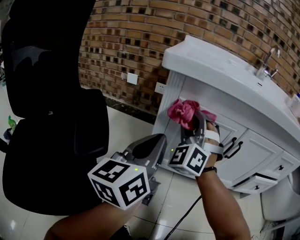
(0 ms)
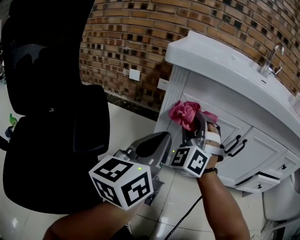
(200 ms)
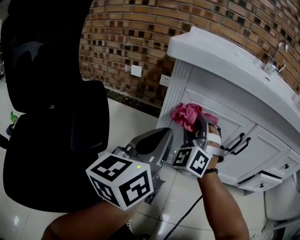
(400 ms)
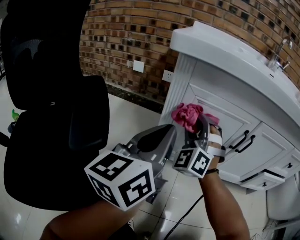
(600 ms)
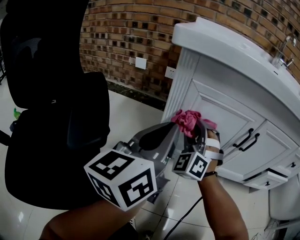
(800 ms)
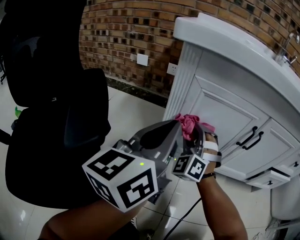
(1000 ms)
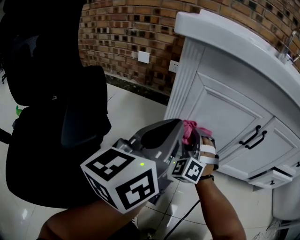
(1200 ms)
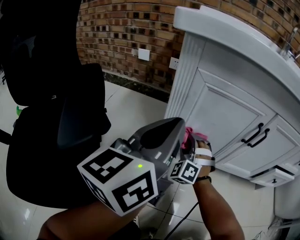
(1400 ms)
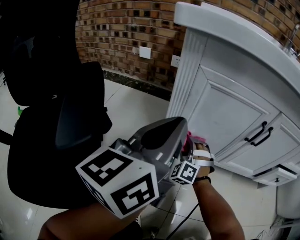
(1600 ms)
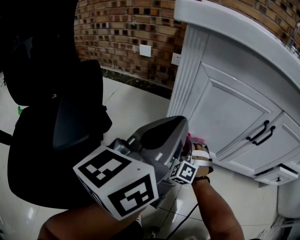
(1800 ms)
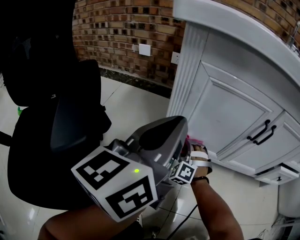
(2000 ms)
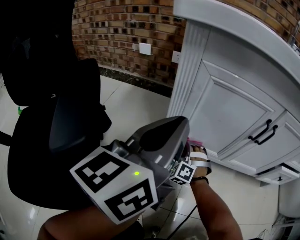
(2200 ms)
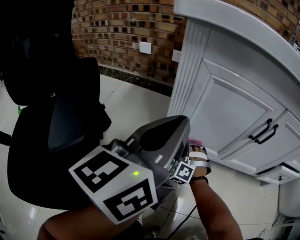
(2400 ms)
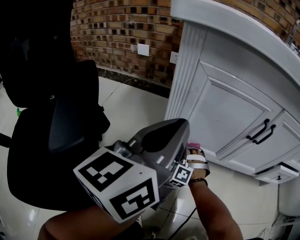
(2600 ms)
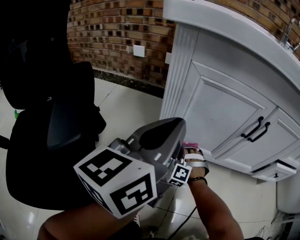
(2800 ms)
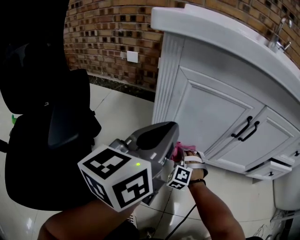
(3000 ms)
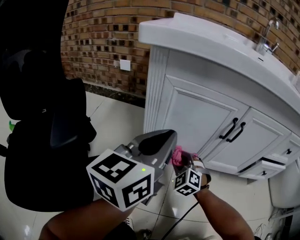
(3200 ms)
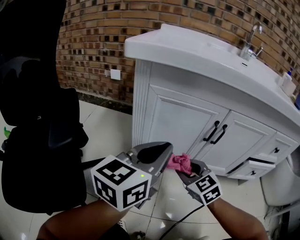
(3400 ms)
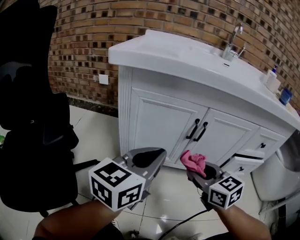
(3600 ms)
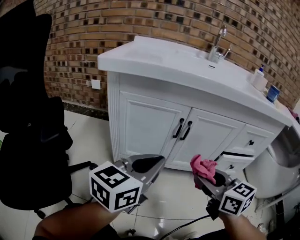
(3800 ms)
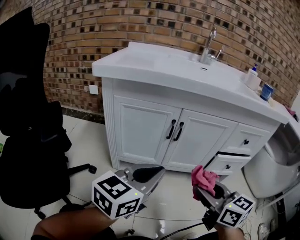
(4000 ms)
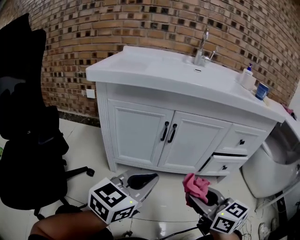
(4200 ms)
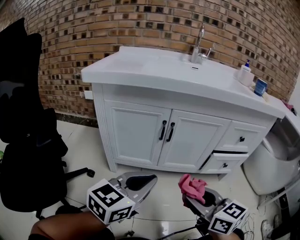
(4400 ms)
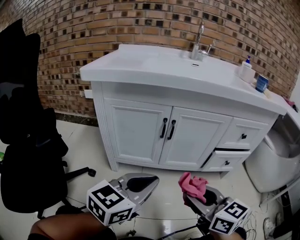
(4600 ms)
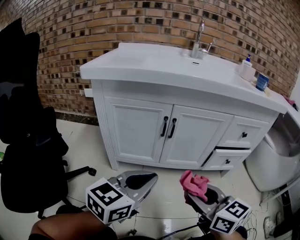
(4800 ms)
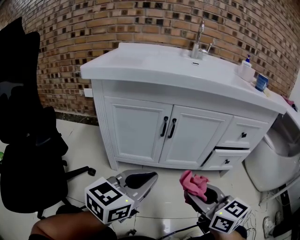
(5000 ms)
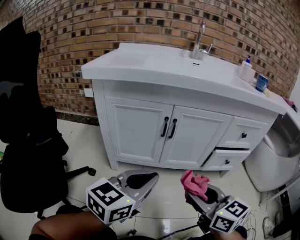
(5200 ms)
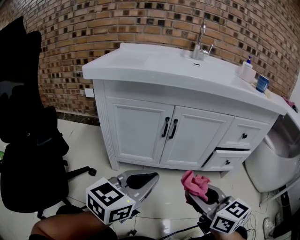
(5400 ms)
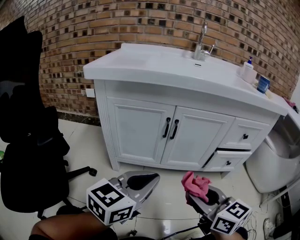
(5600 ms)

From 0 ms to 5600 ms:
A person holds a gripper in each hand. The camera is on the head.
From 0 ms to 1400 ms: The right gripper goes roughly 25 cm downward.
From 1400 ms to 2800 ms: The right gripper heads downward, covering approximately 15 cm, and turns by about 20 degrees.
From 2800 ms to 4200 ms: The left gripper shifts approximately 25 cm to the right and backward, and changes its angle by approximately 30 degrees. Meanwhile the right gripper is displaced upward, to the right and backward by some 50 cm, and rotates around the line of its fingers by some 90 degrees, clockwise from behind.
From 4200 ms to 5600 ms: Neither gripper changes place.

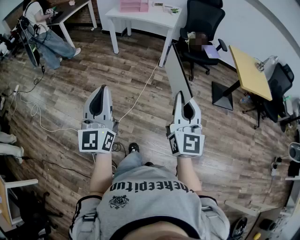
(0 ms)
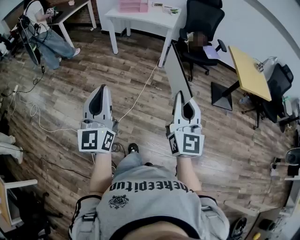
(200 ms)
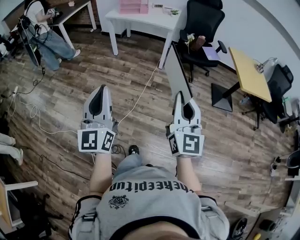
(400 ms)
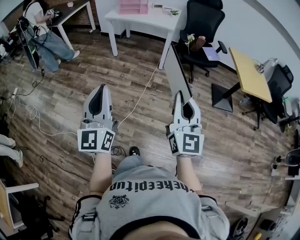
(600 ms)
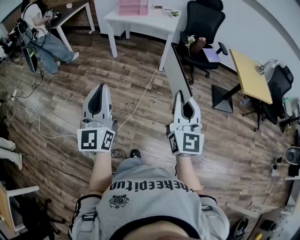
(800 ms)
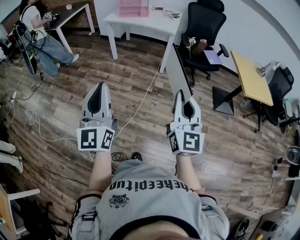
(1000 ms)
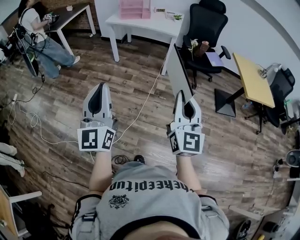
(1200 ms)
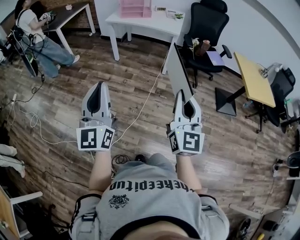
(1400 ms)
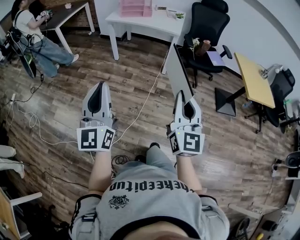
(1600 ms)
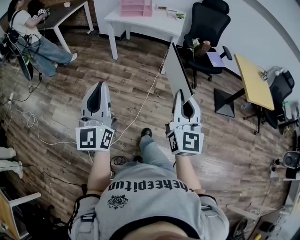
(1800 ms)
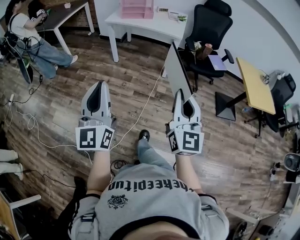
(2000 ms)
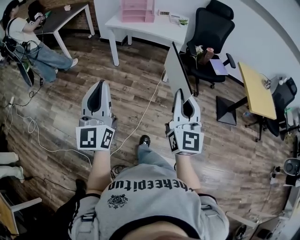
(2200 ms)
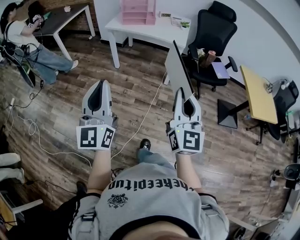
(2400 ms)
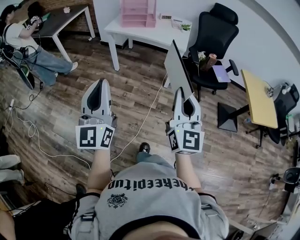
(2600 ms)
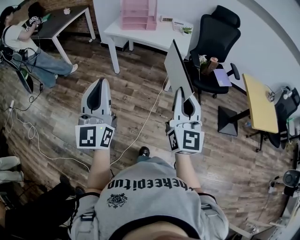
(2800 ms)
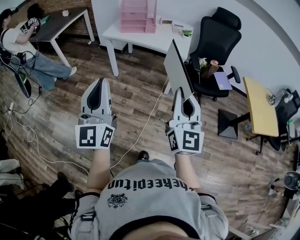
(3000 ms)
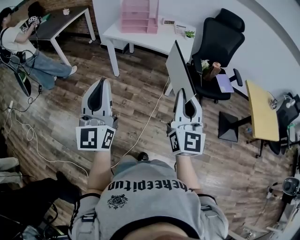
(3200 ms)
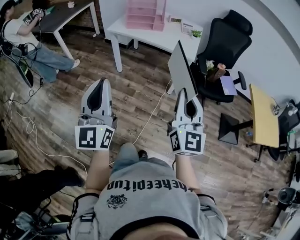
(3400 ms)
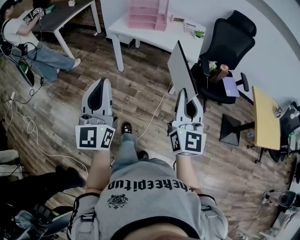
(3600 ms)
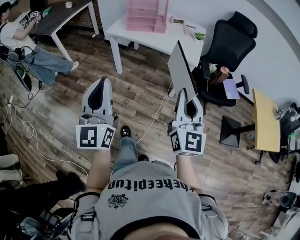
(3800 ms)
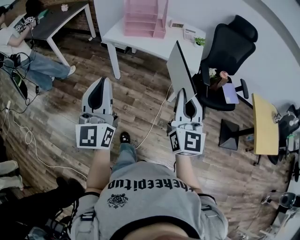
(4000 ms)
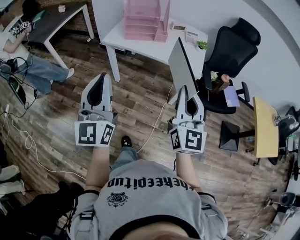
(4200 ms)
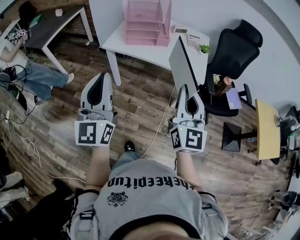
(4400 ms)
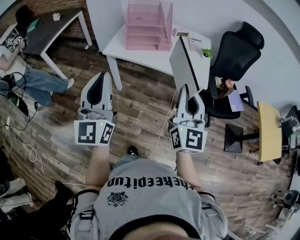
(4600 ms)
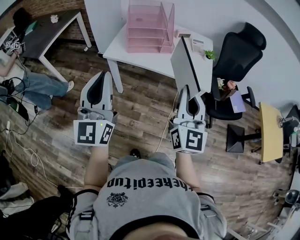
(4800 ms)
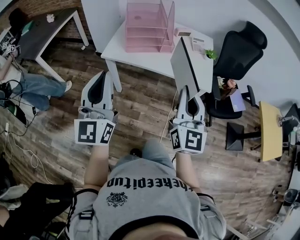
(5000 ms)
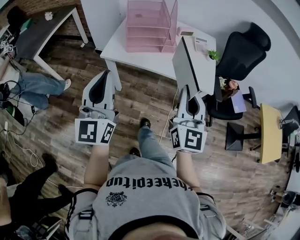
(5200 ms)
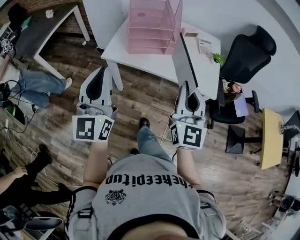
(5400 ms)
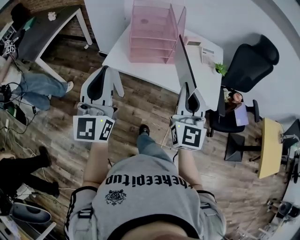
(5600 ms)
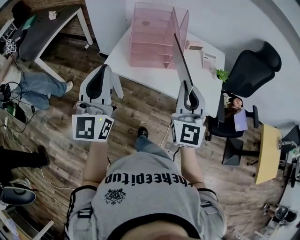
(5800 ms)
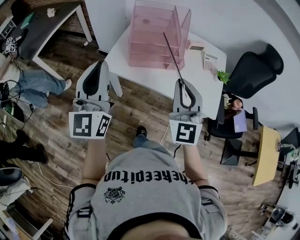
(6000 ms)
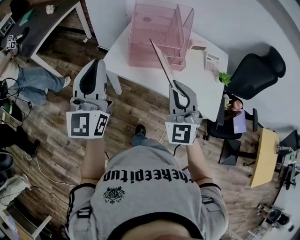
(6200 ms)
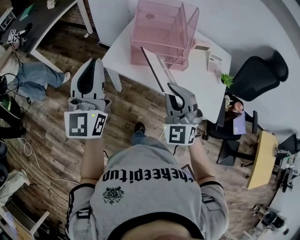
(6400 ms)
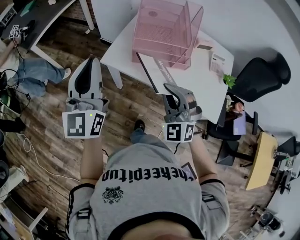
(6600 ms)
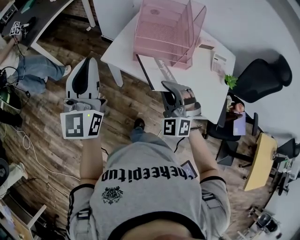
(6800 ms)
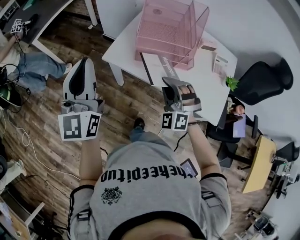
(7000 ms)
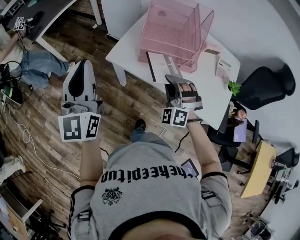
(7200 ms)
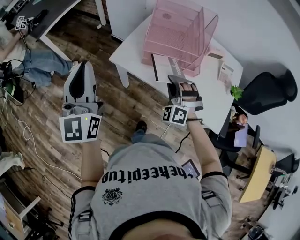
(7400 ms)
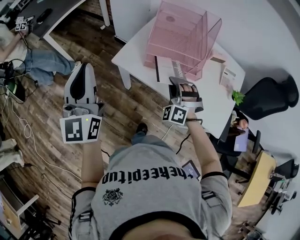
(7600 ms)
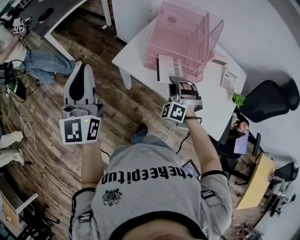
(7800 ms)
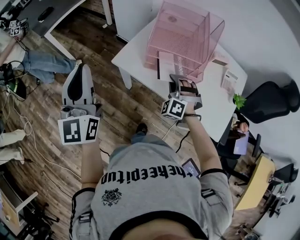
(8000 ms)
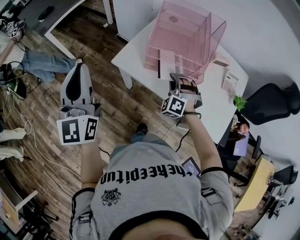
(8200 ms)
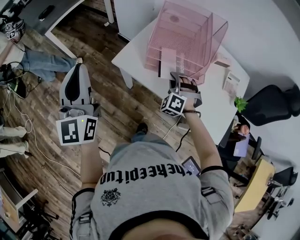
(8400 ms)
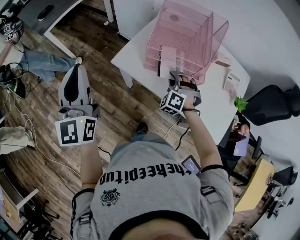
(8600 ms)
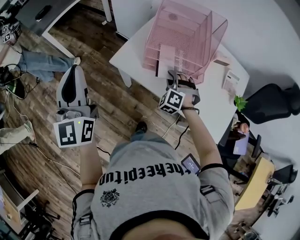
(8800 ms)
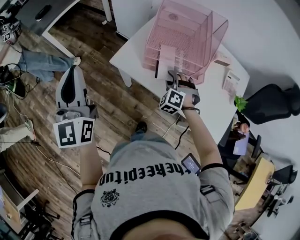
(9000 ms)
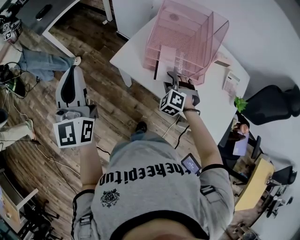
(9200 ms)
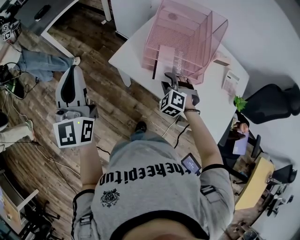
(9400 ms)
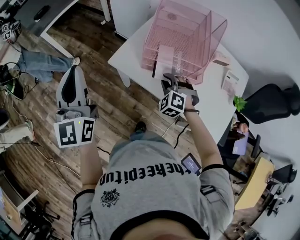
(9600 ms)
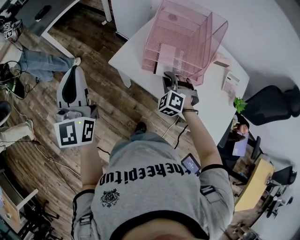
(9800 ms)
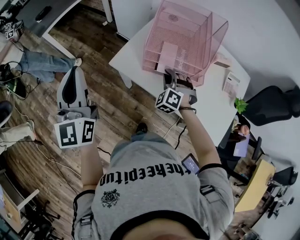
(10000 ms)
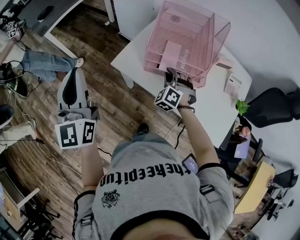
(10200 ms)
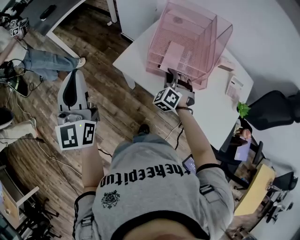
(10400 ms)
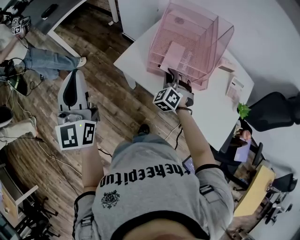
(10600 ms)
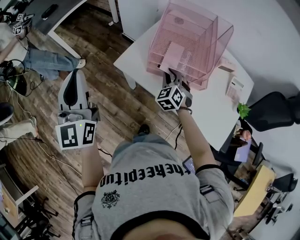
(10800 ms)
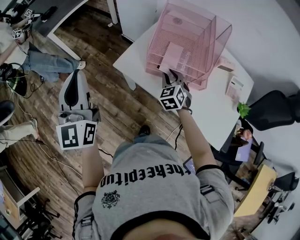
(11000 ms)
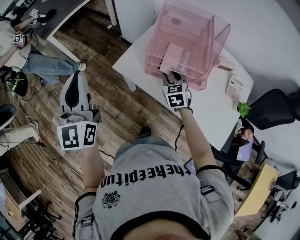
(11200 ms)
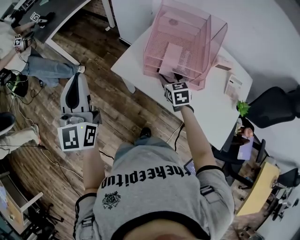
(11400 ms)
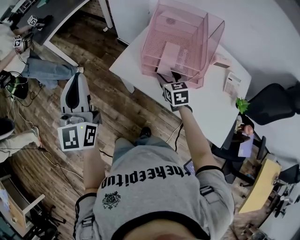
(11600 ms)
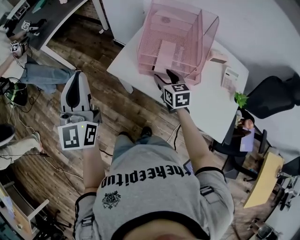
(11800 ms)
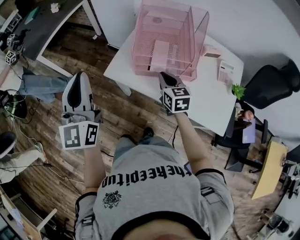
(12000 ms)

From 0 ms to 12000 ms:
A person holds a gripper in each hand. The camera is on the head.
From 0 ms to 1600 ms: The two grippers go about 15 cm forward and to the left.
From 1600 ms to 3000 ms: The grippers both shift forward by roughly 30 cm.
From 3000 ms to 4400 ms: The grippers both shift forward by approximately 30 cm.
From 4400 ms to 6000 ms: Both grippers move forward, about 30 cm. The right gripper changes its angle by about 30 degrees.
From 6000 ms to 7600 ms: The right gripper goes some 25 cm downward and forward, and rolls counterclockwise, seen from behind, by some 50 degrees; the left gripper is displaced to the left by roughly 5 cm.
From 7600 ms to 9000 ms: The right gripper travels downward and forward by some 10 cm.
From 9000 ms to 10400 ms: The grippers make only small movements.
From 10400 ms to 12000 ms: The right gripper shifts some 5 cm upward, rolls clockwise, seen from behind, by approximately 70 degrees, and opens, then closes again; the left gripper shifts by about 5 cm.

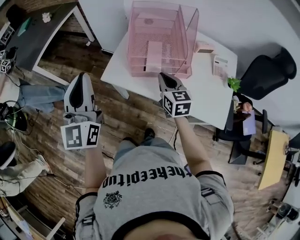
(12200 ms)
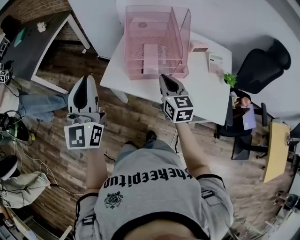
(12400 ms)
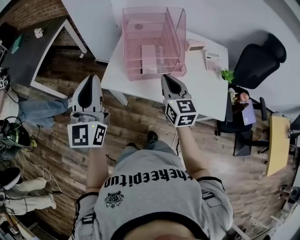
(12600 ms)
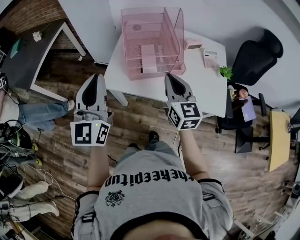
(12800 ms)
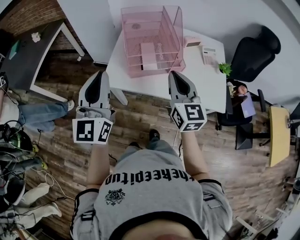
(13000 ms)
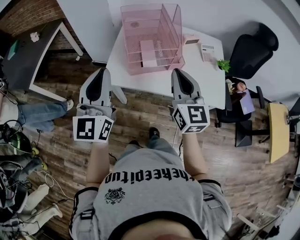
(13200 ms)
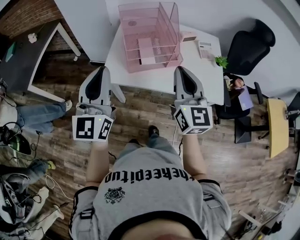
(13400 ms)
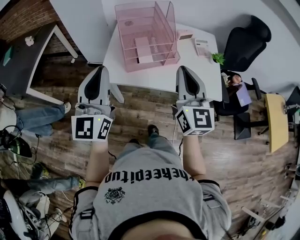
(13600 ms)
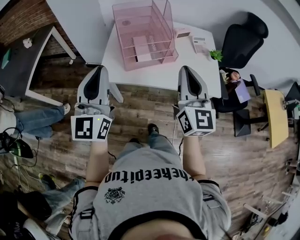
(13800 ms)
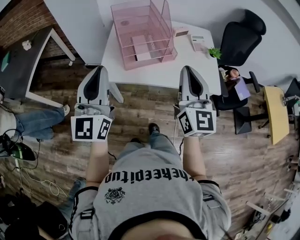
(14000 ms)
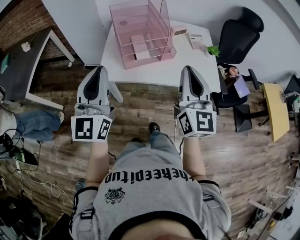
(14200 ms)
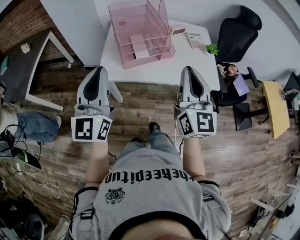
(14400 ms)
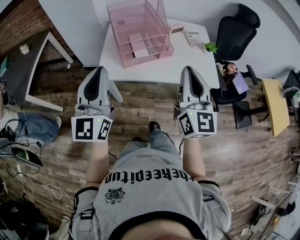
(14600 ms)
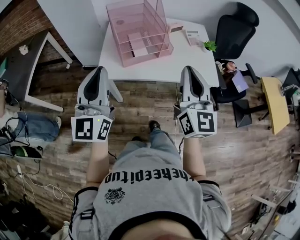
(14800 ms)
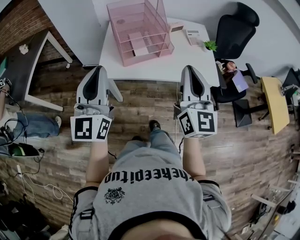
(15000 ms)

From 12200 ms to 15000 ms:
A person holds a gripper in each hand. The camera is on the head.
From 12200 ms to 13600 ms: The right gripper is displaced upward and backward by roughly 25 cm, and rotates approximately 40 degrees, while the left gripper shifts by about 5 cm, and turns by about 20 degrees.
From 13600 ms to 15000 ms: The right gripper moves backward, roughly 10 cm.

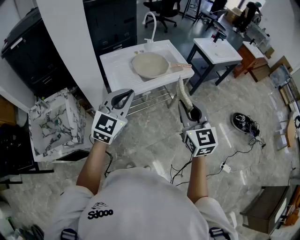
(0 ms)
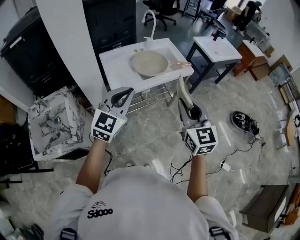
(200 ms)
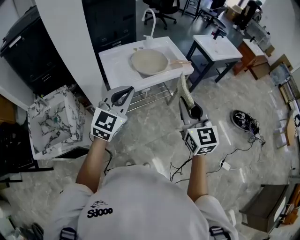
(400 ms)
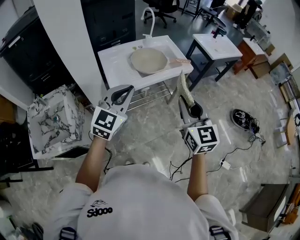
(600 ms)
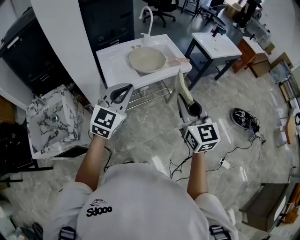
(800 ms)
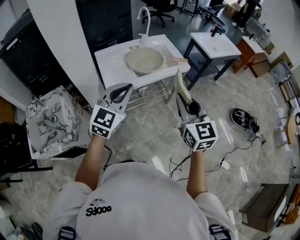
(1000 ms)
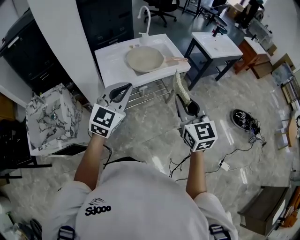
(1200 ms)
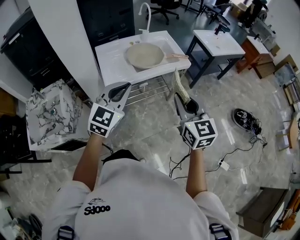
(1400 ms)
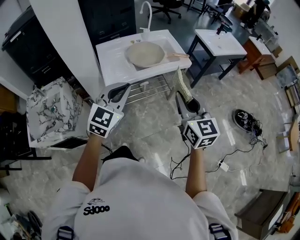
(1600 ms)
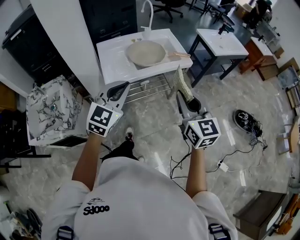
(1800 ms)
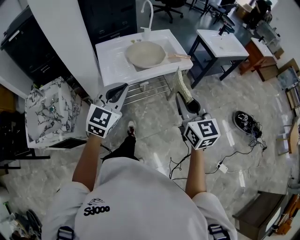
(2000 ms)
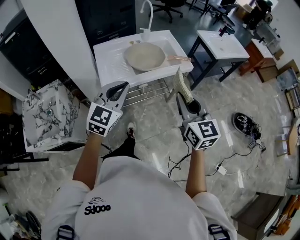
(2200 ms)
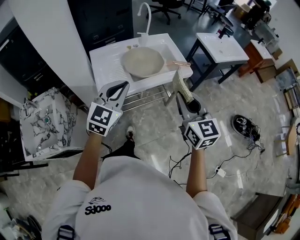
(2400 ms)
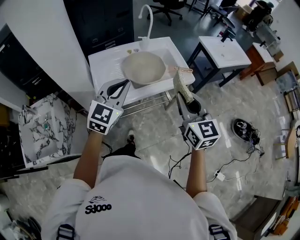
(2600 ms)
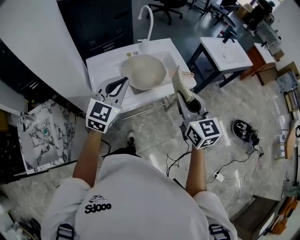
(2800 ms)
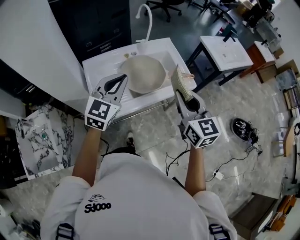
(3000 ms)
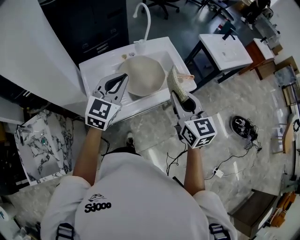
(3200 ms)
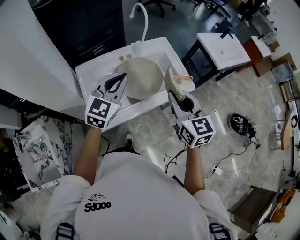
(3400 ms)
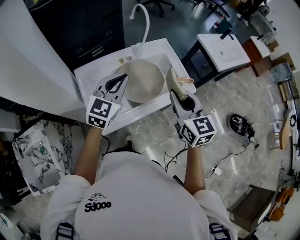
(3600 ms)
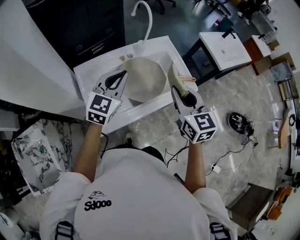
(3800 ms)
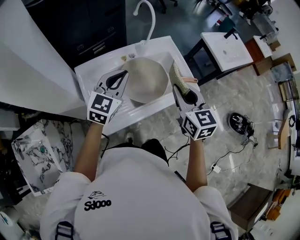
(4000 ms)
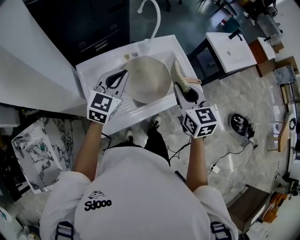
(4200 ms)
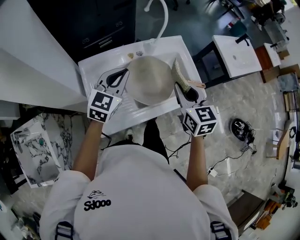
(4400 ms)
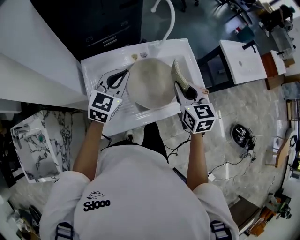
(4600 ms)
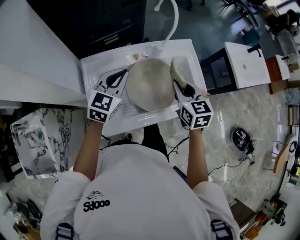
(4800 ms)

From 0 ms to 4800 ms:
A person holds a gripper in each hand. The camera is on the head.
From 0 ms to 1600 ms: Both grippers travel together to the right, approximately 5 cm.
From 1600 ms to 3200 ms: The grippers both shift forward by about 30 cm.
From 3200 ms to 4800 ms: The left gripper travels forward, downward and to the left by approximately 15 cm; the right gripper goes roughly 20 cm forward and downward.
